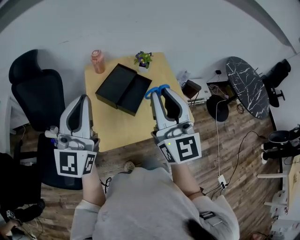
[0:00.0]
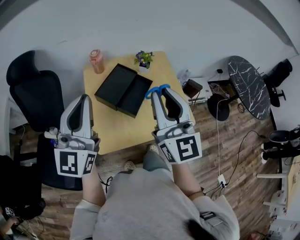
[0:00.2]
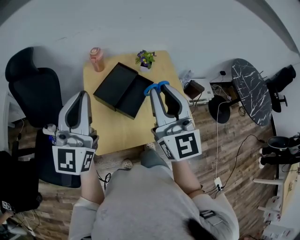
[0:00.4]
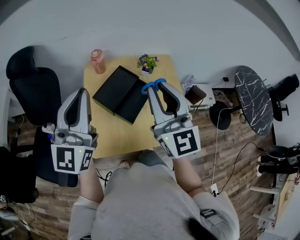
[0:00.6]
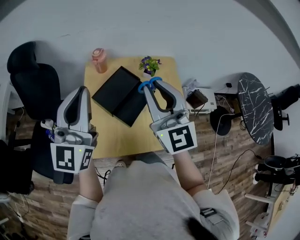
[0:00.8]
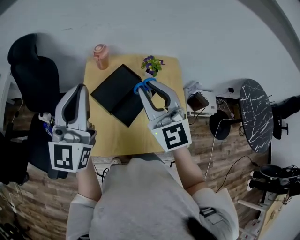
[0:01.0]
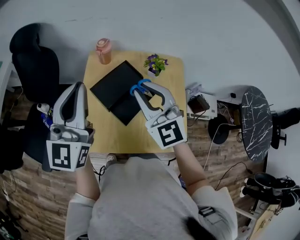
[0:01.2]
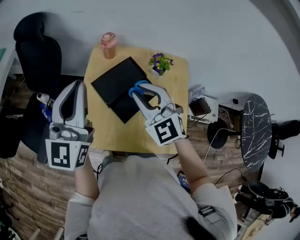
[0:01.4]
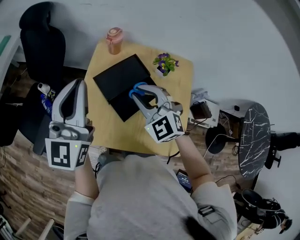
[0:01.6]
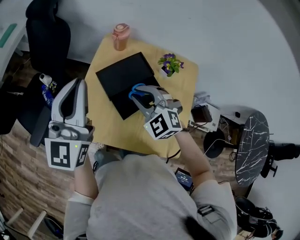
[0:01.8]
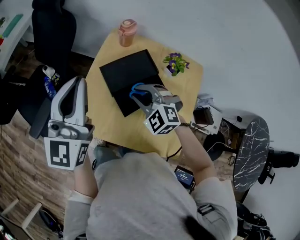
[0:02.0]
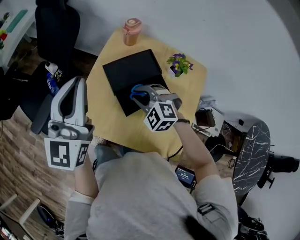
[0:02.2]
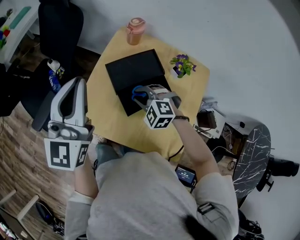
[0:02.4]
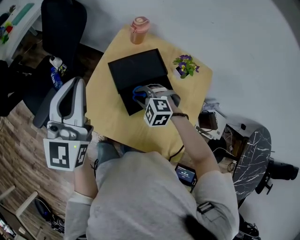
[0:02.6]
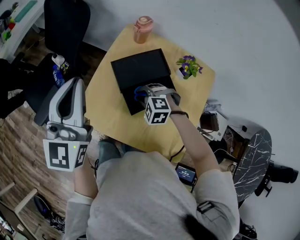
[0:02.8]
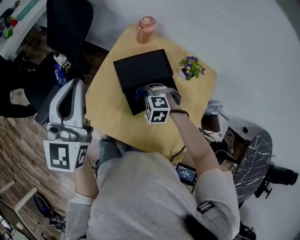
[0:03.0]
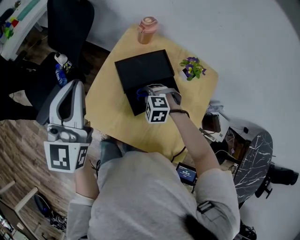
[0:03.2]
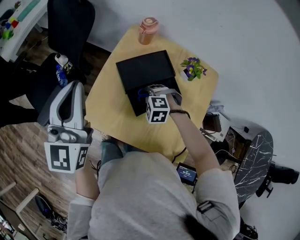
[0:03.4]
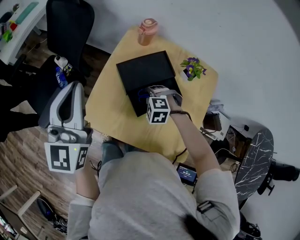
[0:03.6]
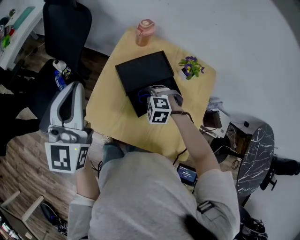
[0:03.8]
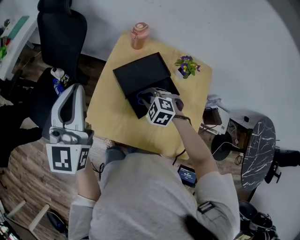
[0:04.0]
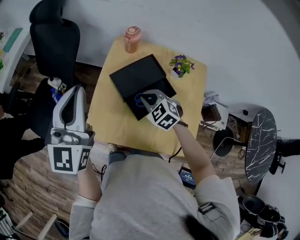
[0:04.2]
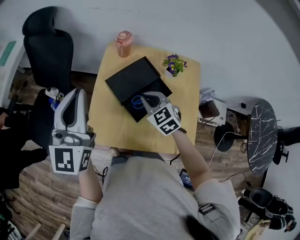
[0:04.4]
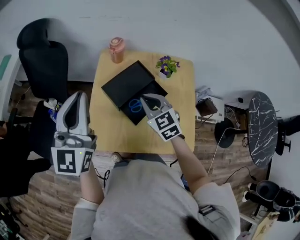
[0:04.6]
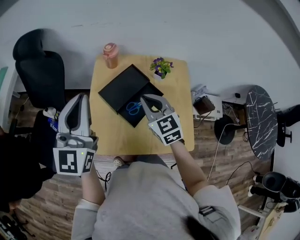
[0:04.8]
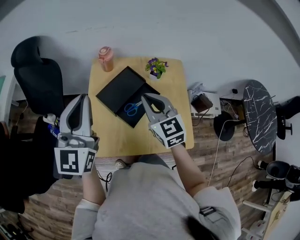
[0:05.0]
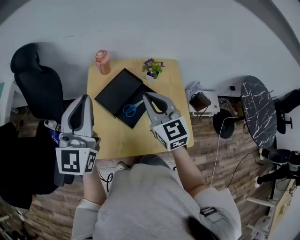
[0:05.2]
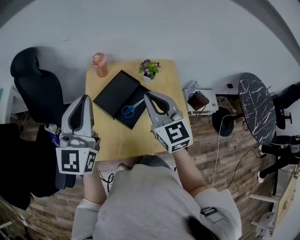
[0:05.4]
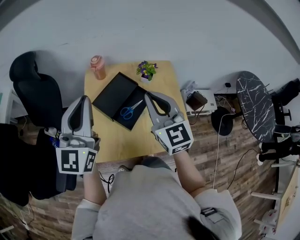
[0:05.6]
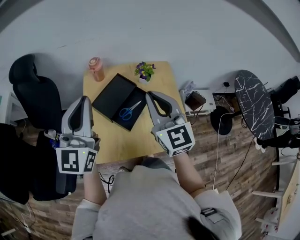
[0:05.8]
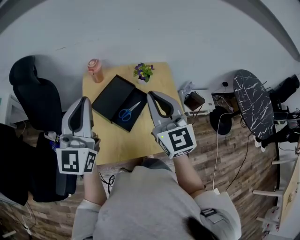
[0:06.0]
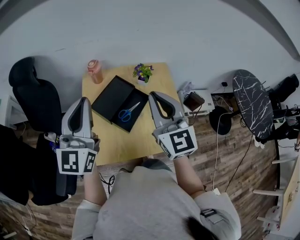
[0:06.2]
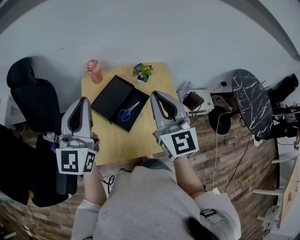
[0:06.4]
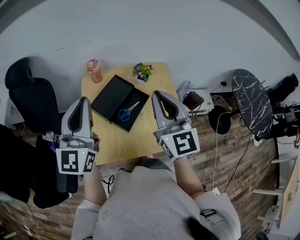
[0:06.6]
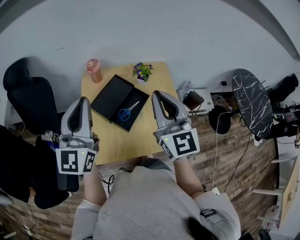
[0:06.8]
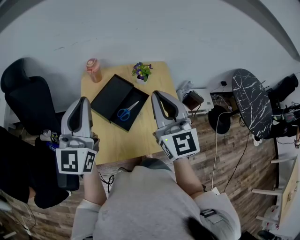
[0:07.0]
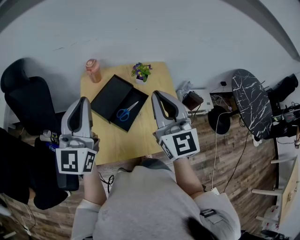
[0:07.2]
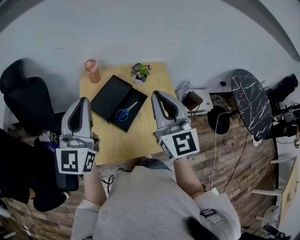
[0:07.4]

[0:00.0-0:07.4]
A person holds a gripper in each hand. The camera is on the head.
0:00.0 to 0:01.4: The left gripper ends up about 10 cm from where it was, and changes its angle by about 20 degrees. Meanwhile the right gripper changes place by about 25 cm, and points its fingers some 30 degrees further downward.
0:01.4 to 0:03.0: The left gripper changes place by some 10 cm, and swivels some 20 degrees. Meanwhile the right gripper is displaced downward by roughly 25 cm, and angles its fingers downward, by some 50 degrees.
0:03.0 to 0:04.4: The right gripper is displaced upward by about 10 cm, and rotates around the line of its fingers by approximately 50 degrees, clockwise from behind.
0:04.4 to 0:06.0: The left gripper heads to the right, covering some 5 cm, while the right gripper goes some 25 cm upward, and points its fingers approximately 40 degrees further upward.
0:06.0 to 0:07.4: There are only small adjustments of the grippers.

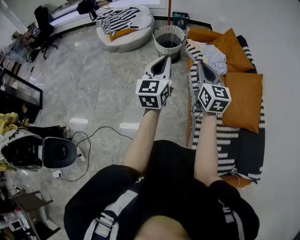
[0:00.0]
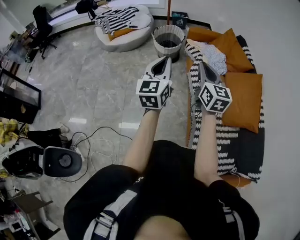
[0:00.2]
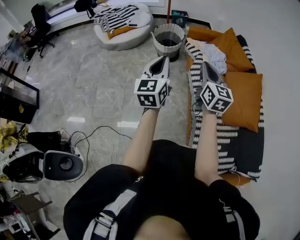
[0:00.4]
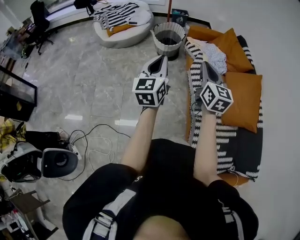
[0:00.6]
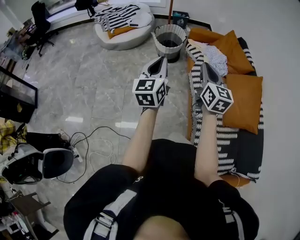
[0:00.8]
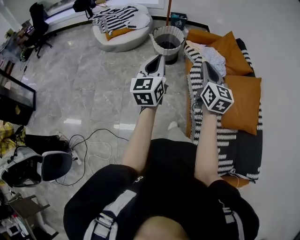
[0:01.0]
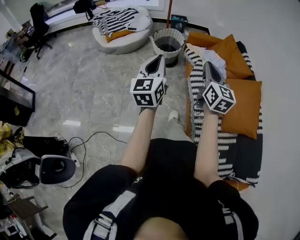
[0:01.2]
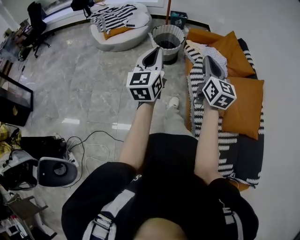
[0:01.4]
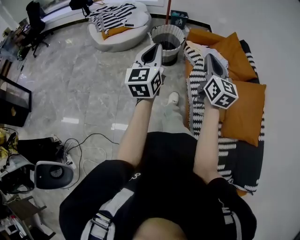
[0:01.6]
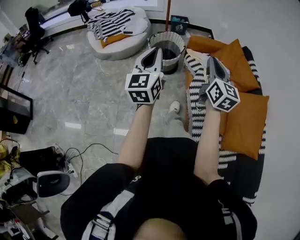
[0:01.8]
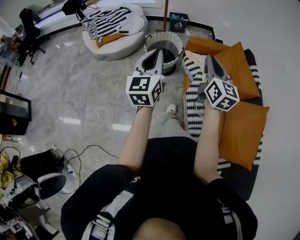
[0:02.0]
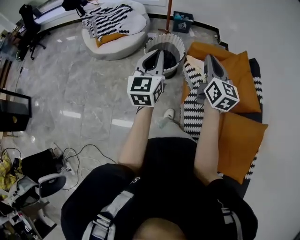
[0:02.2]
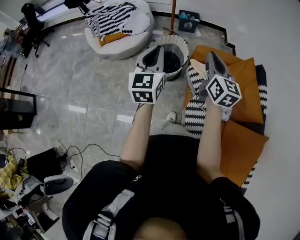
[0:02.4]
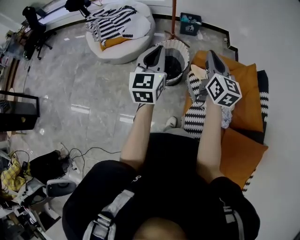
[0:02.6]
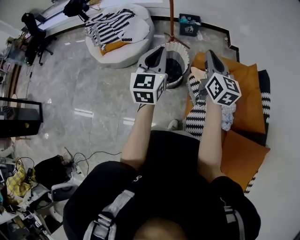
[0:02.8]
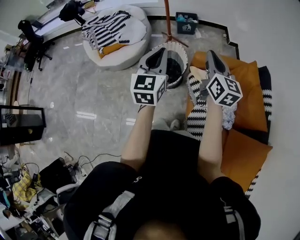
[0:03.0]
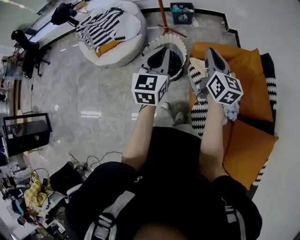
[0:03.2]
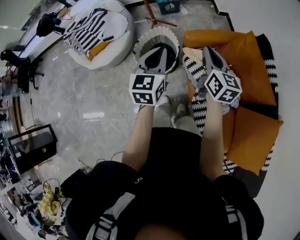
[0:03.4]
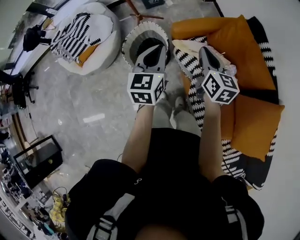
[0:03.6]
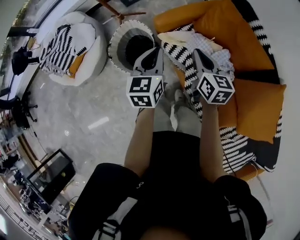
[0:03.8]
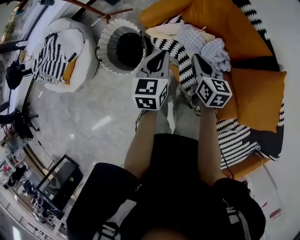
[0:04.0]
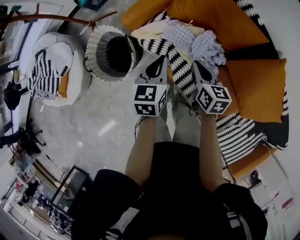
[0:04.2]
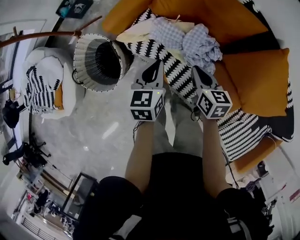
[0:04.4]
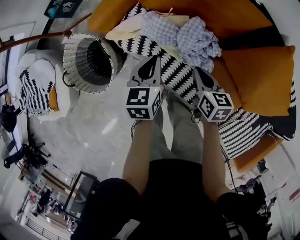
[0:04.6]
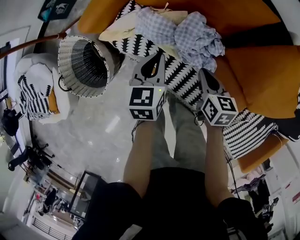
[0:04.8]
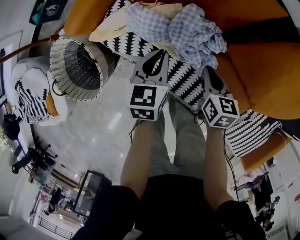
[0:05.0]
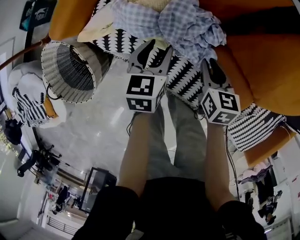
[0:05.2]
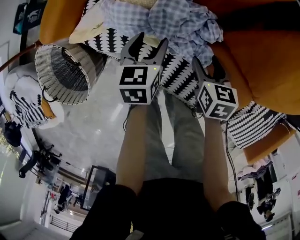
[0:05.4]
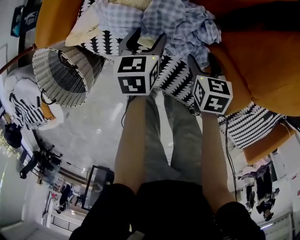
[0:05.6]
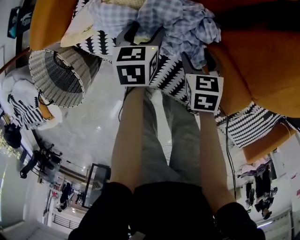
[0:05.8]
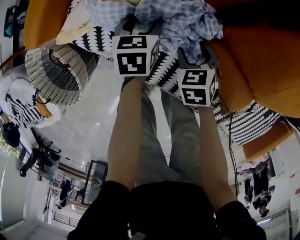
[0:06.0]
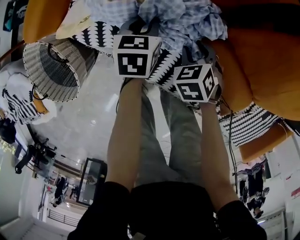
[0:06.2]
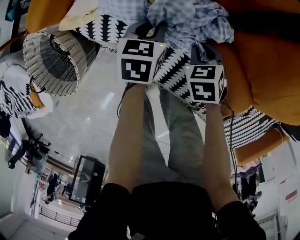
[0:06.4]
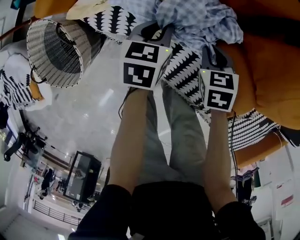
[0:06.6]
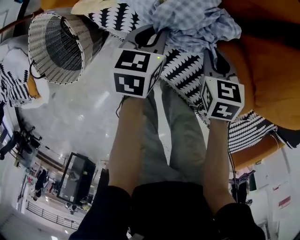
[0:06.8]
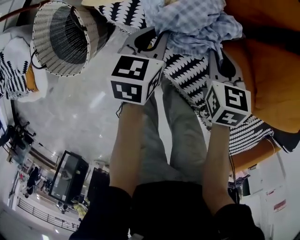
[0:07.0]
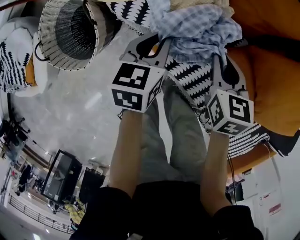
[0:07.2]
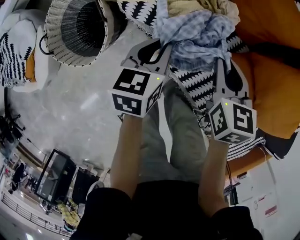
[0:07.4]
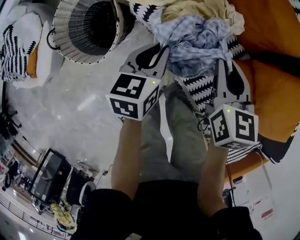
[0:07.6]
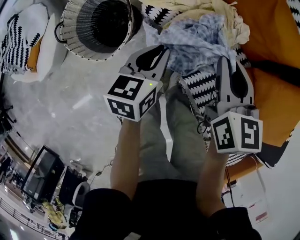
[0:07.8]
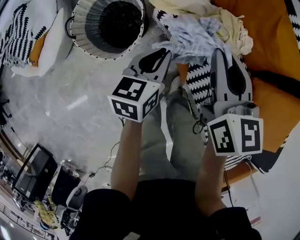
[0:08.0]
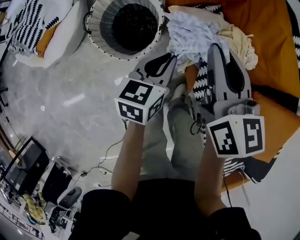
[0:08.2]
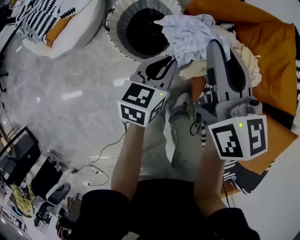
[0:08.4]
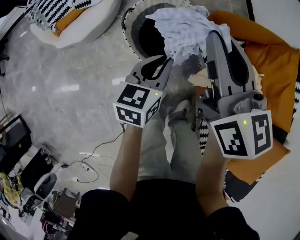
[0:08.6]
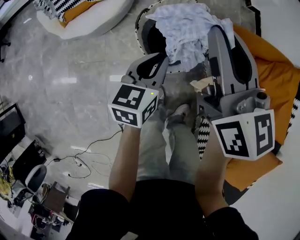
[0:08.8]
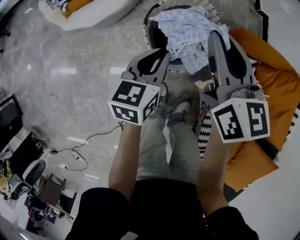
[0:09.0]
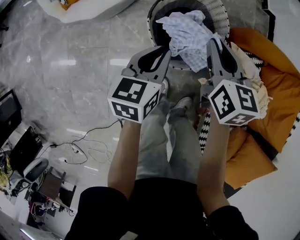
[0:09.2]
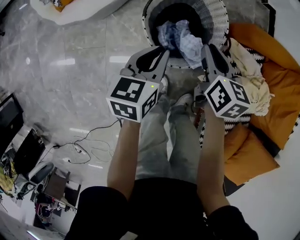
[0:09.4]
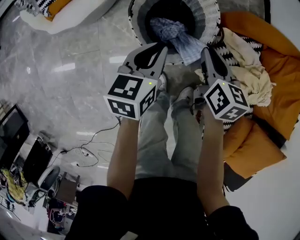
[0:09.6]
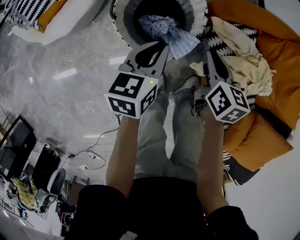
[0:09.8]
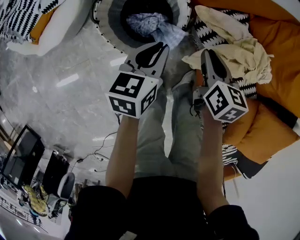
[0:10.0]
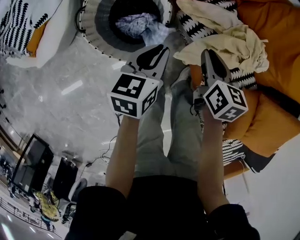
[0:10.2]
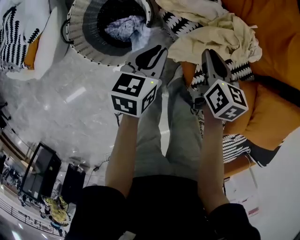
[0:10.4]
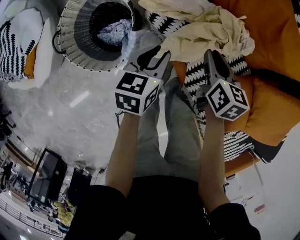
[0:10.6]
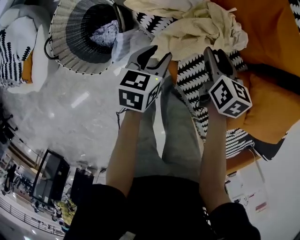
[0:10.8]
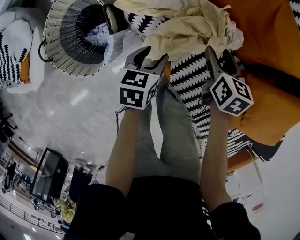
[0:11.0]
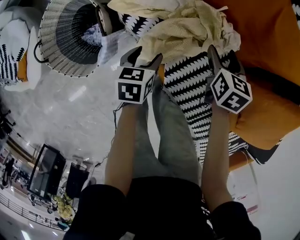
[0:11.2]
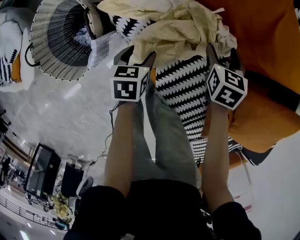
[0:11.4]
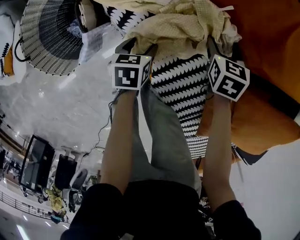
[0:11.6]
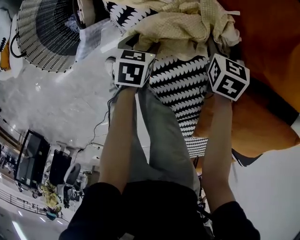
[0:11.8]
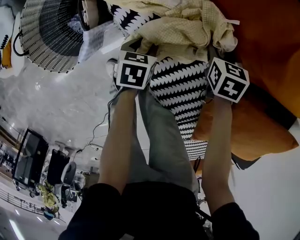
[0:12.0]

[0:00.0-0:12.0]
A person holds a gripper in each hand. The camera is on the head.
0:00.0 to 0:01.6: The left gripper goes roughly 15 cm forward and to the left. The right gripper moves forward, some 15 cm.
0:01.6 to 0:03.0: The two grippers travel together, forward, approximately 60 cm.
0:03.0 to 0:04.4: The two grippers go roughly 35 cm downward. The right gripper tips its fingers downward by roughly 30 degrees; the left gripper turns by about 50 degrees.
0:04.4 to 0:06.0: Both grippers travel together downward and to the right, roughly 30 cm. The right gripper swivels some 40 degrees, and opens its fingers; the left gripper rotates approximately 20 degrees, and opens up.
0:06.0 to 0:07.6: The right gripper goes approximately 30 cm upward and to the left, swivels about 30 degrees, and closes. The left gripper moves backward, to the left and upward, roughly 30 cm, rotates roughly 30 degrees, and closes its fingers.
0:07.6 to 0:09.0: The left gripper changes place by approximately 40 cm, and turns by roughly 40 degrees. Meanwhile the right gripper ends up roughly 50 cm from where it was, and turns by some 50 degrees.
0:09.0 to 0:10.4: The right gripper ends up approximately 40 cm from where it was, and swivels about 50 degrees. The left gripper shifts by about 25 cm, and rotates about 30 degrees.
0:10.4 to 0:12.0: The right gripper shifts some 30 cm to the right, downward and forward, swivels approximately 30 degrees, and opens up, while the left gripper is displaced downward and to the right by approximately 25 cm, swivels approximately 30 degrees, and opens its fingers.

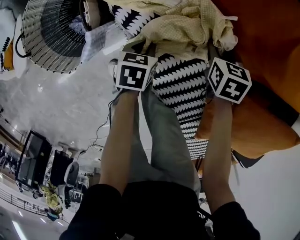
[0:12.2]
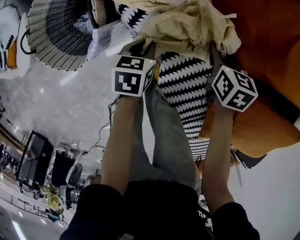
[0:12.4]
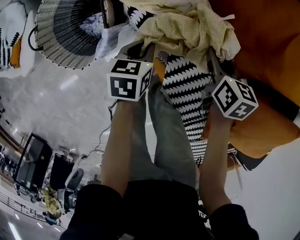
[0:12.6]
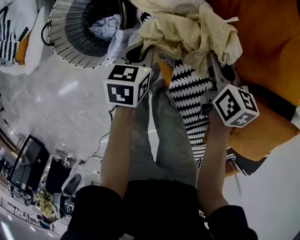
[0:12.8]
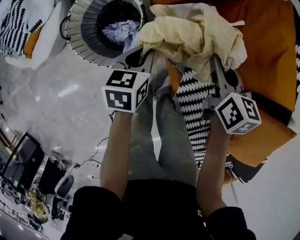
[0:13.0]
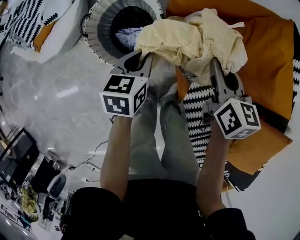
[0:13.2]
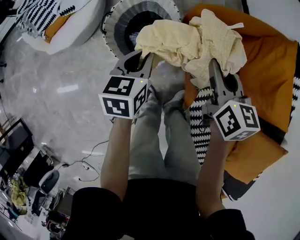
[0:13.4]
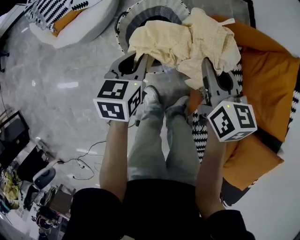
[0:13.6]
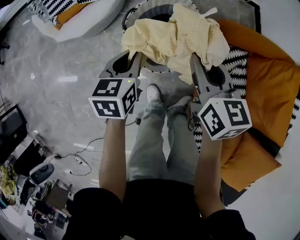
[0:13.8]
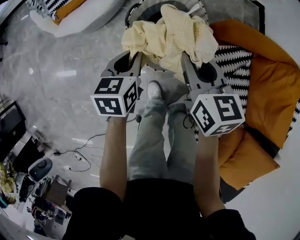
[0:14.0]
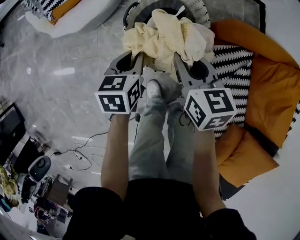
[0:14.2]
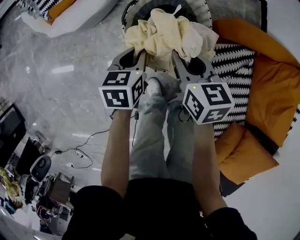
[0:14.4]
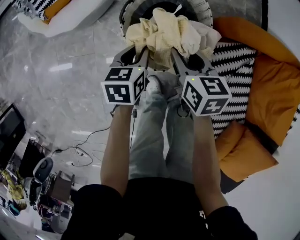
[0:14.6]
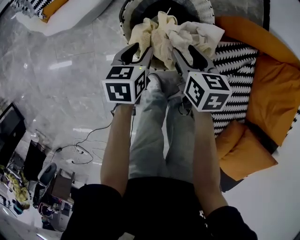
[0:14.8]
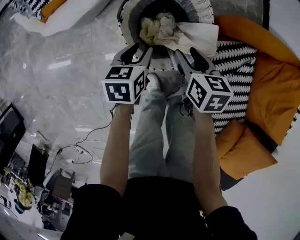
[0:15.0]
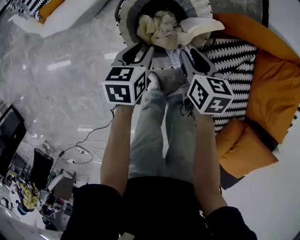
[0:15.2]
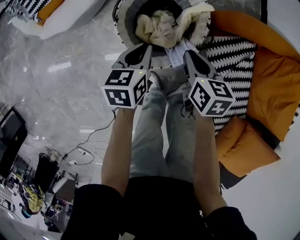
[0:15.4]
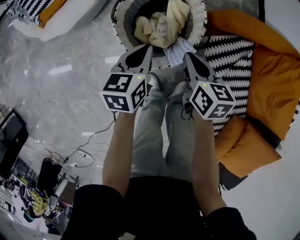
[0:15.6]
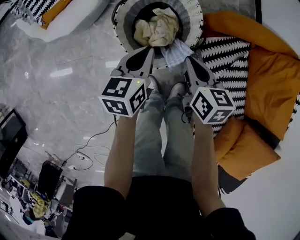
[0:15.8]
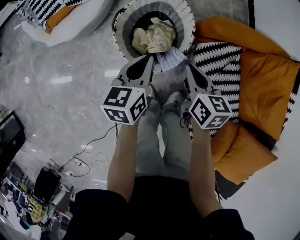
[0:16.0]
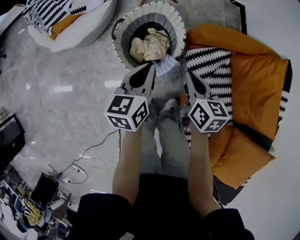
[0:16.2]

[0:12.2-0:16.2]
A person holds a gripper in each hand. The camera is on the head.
0:12.2 to 0:13.6: The right gripper moves some 50 cm, and points its fingers approximately 40 degrees further upward; the left gripper shifts by about 50 cm, and rotates roughly 40 degrees.
0:13.6 to 0:14.8: The left gripper shifts roughly 15 cm downward, and opens up; the right gripper shifts about 20 cm downward and to the left, rotates some 20 degrees, and opens up.
0:14.8 to 0:16.2: The right gripper moves upward, to the right and backward, roughly 20 cm, and closes up. Meanwhile the left gripper travels upward and to the right by some 20 cm, swivels roughly 20 degrees, and closes up.
